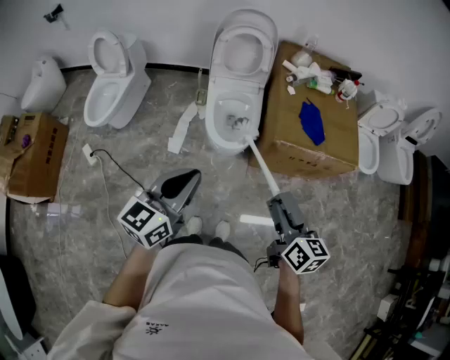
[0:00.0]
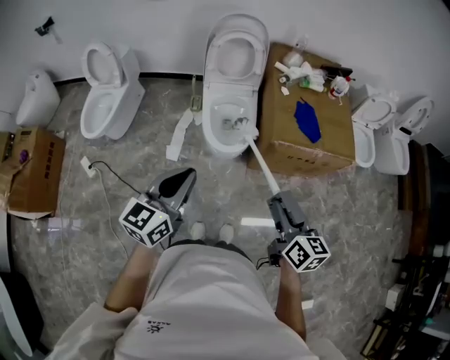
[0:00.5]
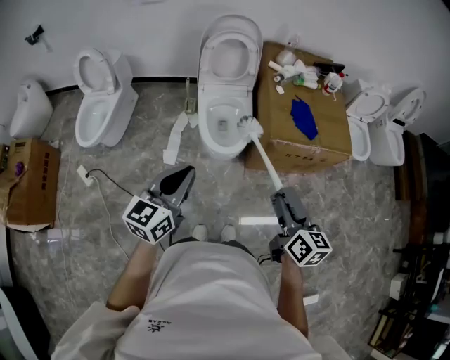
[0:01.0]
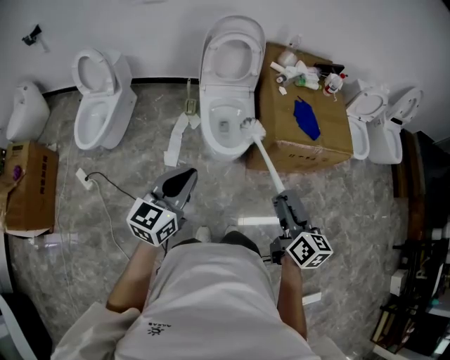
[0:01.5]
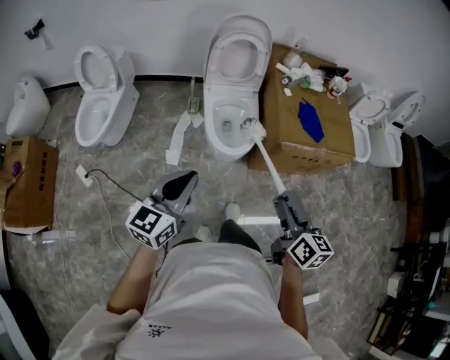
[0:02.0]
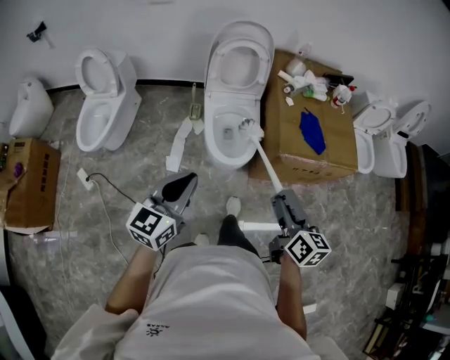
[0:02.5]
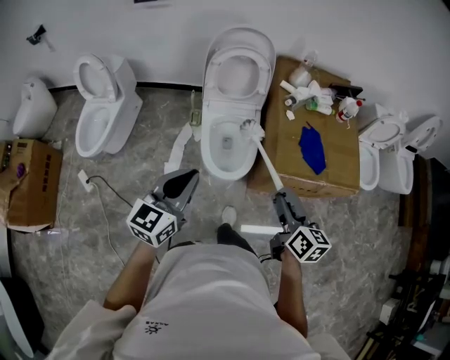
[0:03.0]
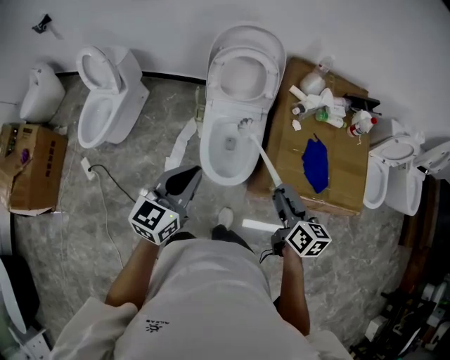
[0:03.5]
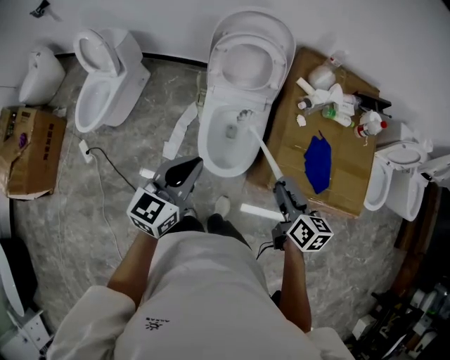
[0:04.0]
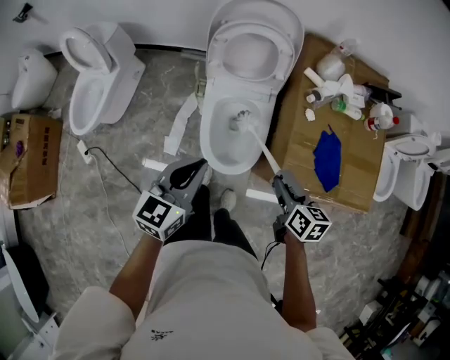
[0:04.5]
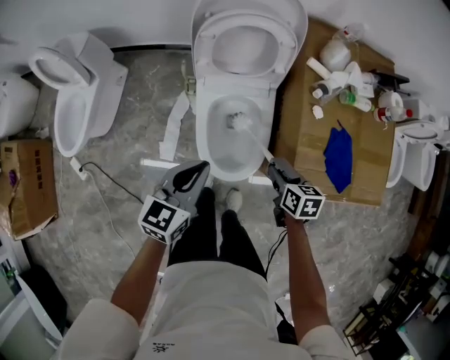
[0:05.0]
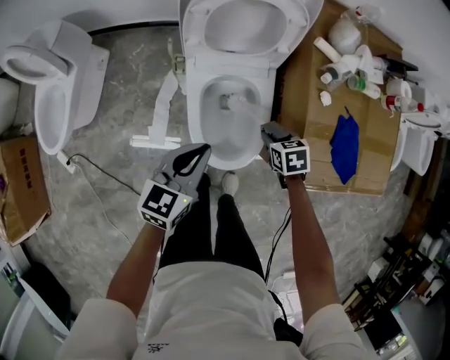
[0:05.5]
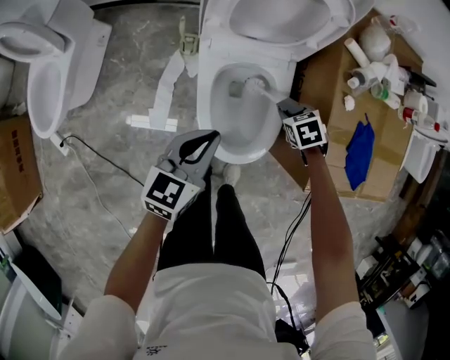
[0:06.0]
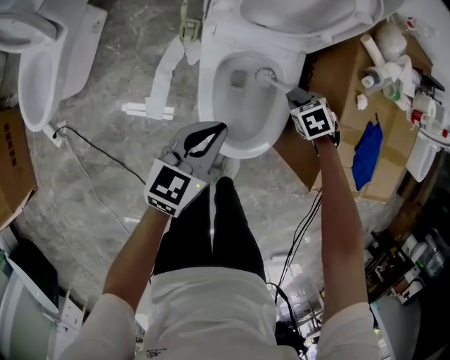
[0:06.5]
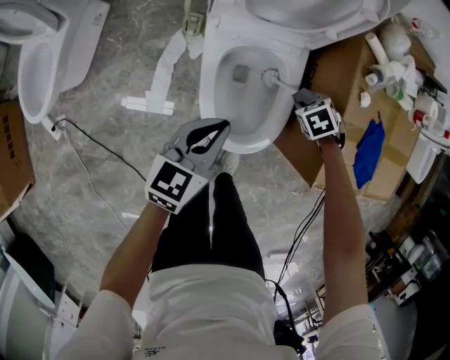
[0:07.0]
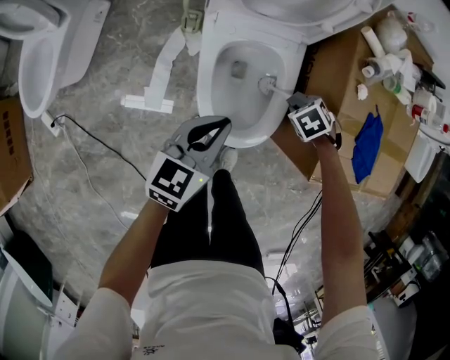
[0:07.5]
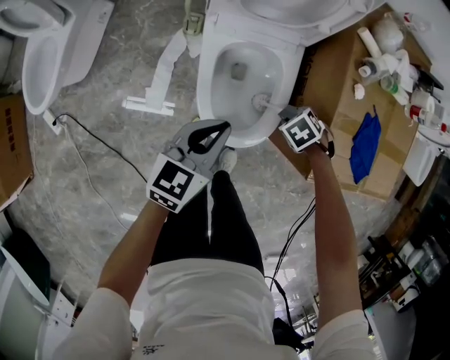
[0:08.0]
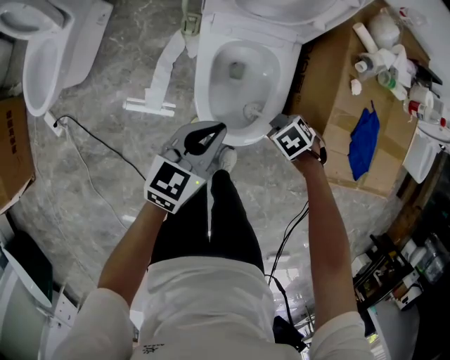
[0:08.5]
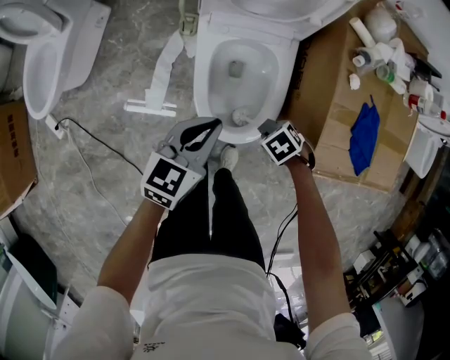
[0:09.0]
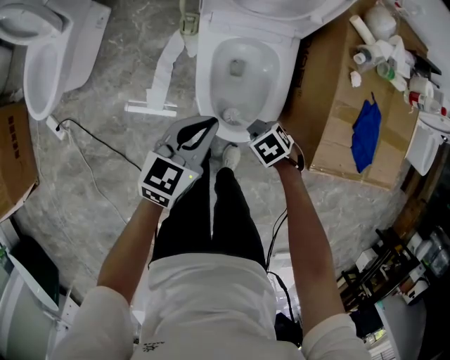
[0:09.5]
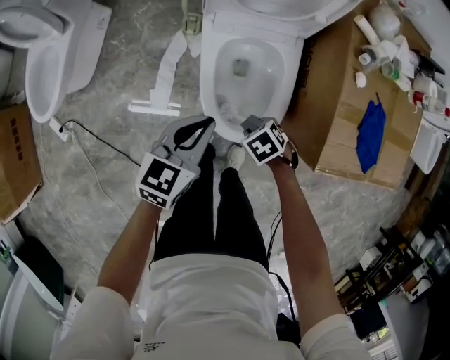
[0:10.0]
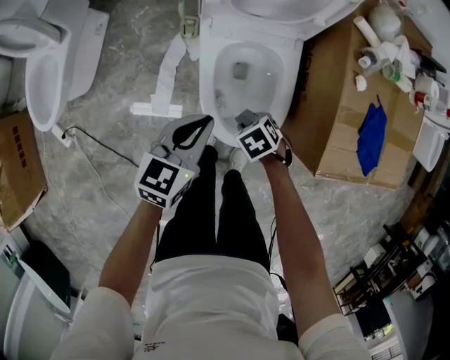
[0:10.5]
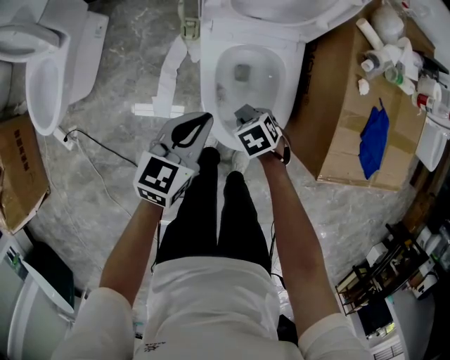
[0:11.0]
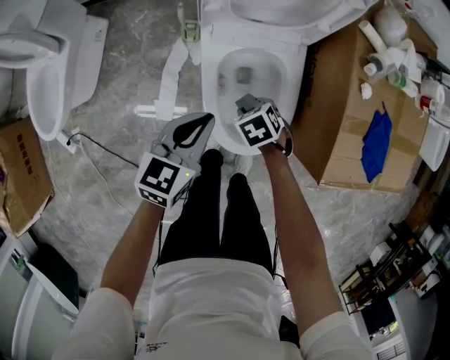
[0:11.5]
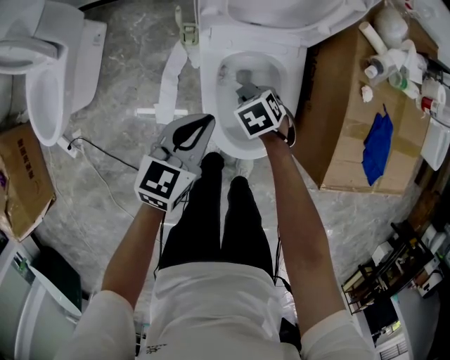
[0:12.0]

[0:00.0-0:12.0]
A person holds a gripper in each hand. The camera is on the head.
0:00.0 to 0:02.0: The two grippers go roughly 10 cm to the left.
0:02.0 to 0:04.0: Both grippers travel together forward, some 35 cm. The right gripper changes its angle by some 20 degrees.
0:04.0 to 0:06.0: The grippers both shift downward by about 30 cm. The right gripper tilts its fingers some 50 degrees downward.
0:06.0 to 0:08.0: The left gripper changes place by roughly 5 cm, while the right gripper shifts by some 10 cm, and turns by roughly 20 degrees.
0:08.0 to 0:10.0: The right gripper moves approximately 15 cm.
0:10.0 to 0:12.0: The right gripper moves approximately 15 cm; the left gripper shifts by roughly 10 cm.

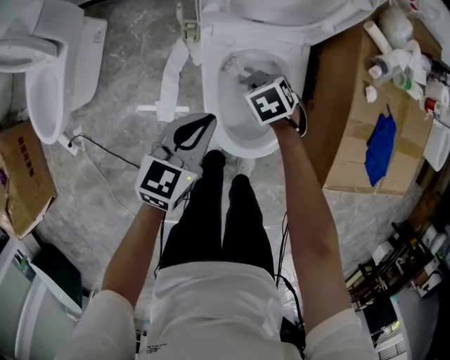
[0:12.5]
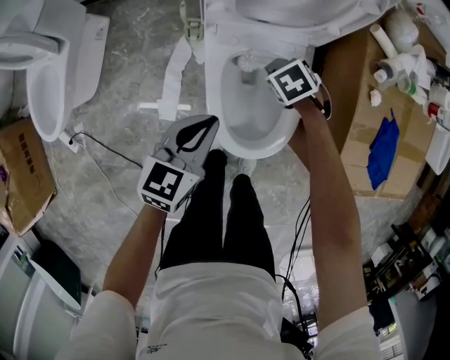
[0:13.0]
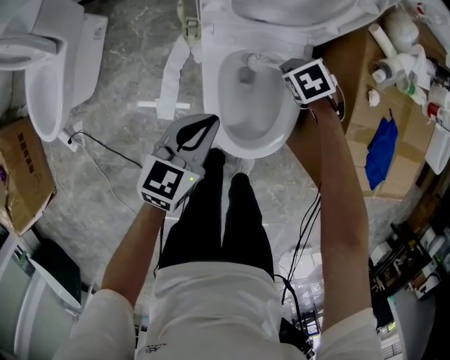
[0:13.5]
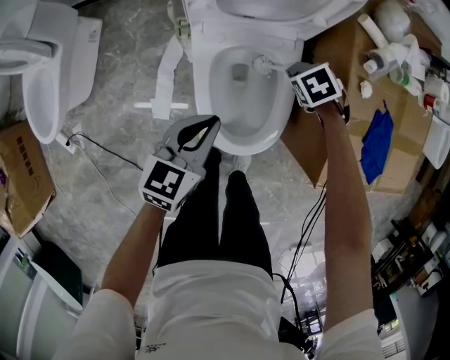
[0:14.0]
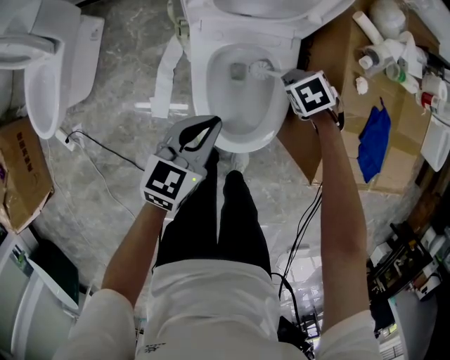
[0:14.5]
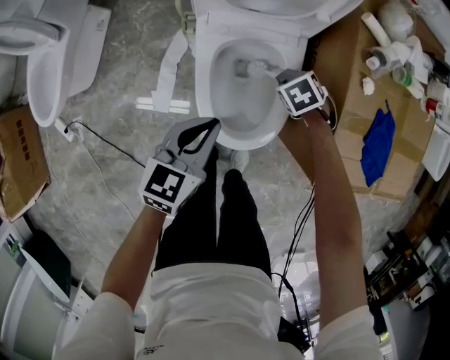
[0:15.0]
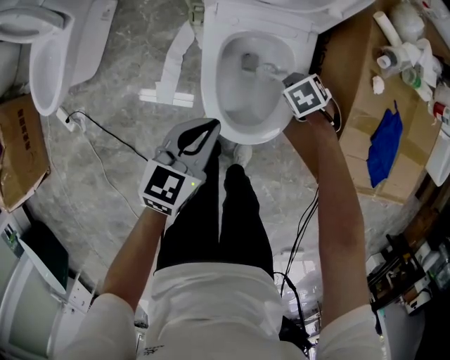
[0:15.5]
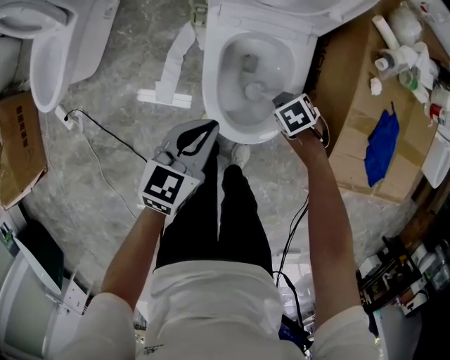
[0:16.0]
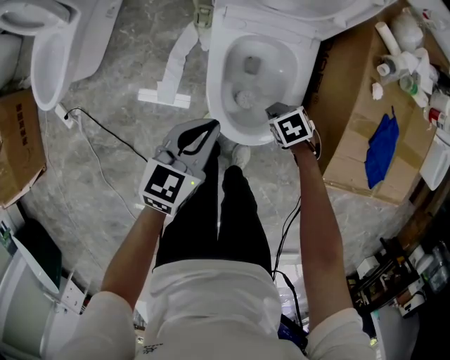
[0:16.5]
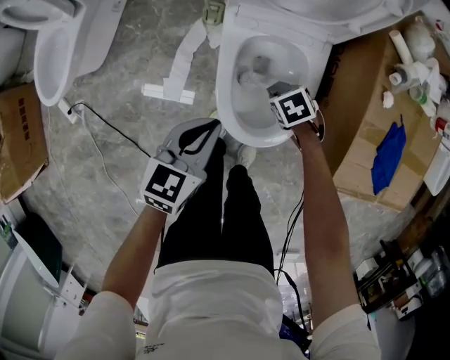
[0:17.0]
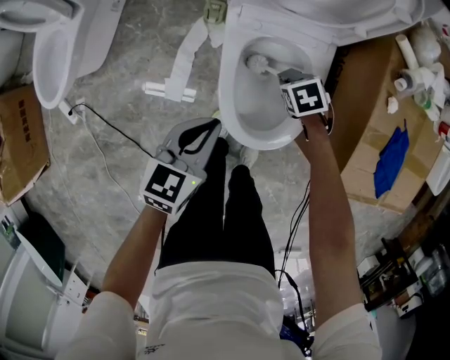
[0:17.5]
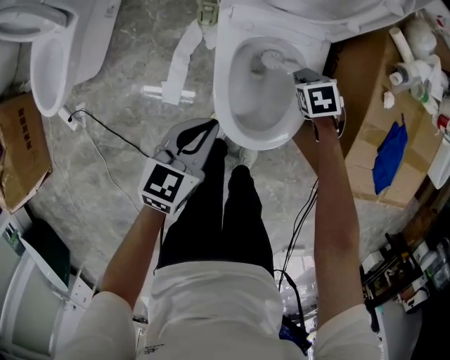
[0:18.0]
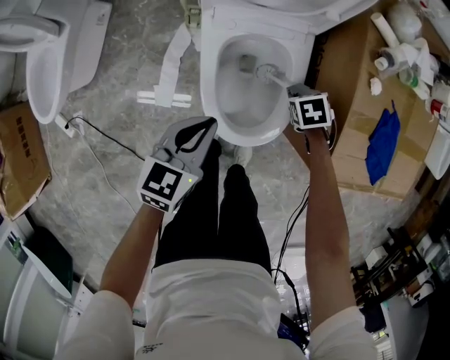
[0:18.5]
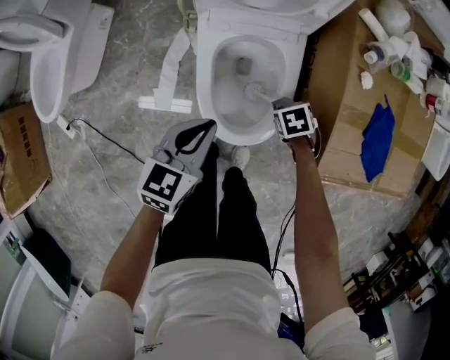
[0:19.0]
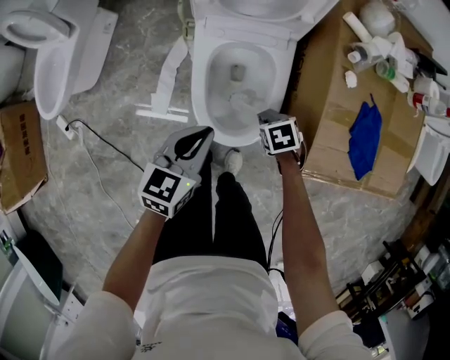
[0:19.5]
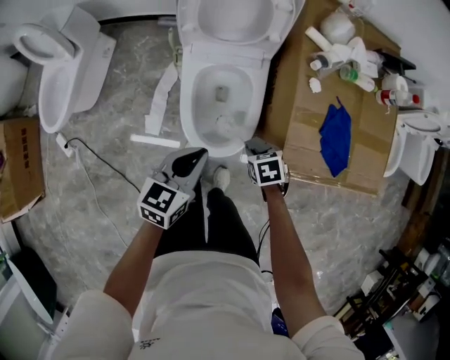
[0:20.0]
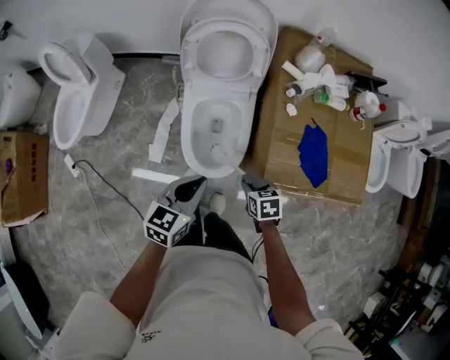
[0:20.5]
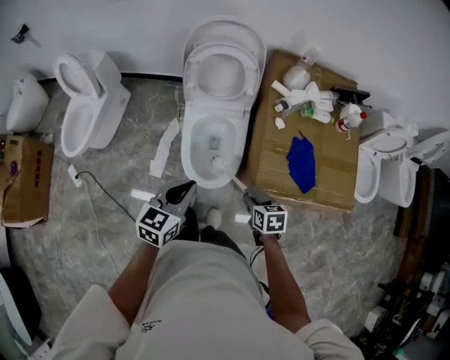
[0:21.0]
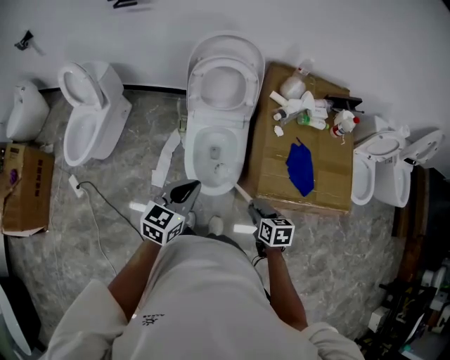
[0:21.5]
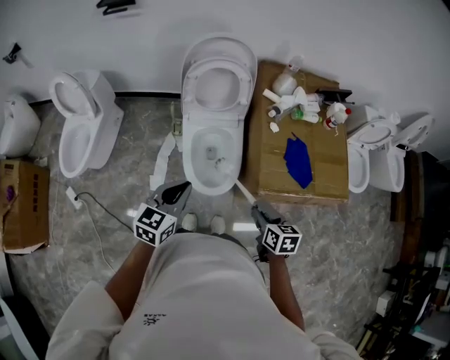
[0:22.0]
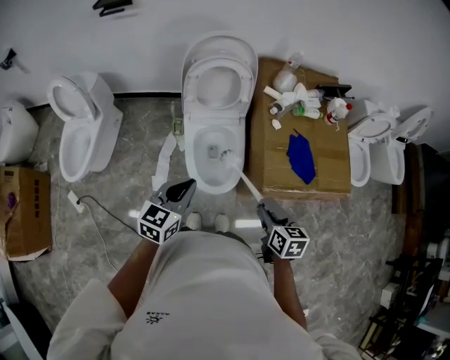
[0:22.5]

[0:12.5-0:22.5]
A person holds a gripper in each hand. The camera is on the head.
0:12.5 to 0:14.5: The right gripper changes place by roughly 15 cm; the left gripper changes place by approximately 5 cm.
0:14.5 to 0:16.5: The right gripper moves approximately 15 cm. The left gripper moves approximately 5 cm.
0:16.5 to 0:18.5: The right gripper shifts by about 10 cm.
0:18.5 to 0:20.5: The right gripper changes place by about 30 cm, and swivels roughly 30 degrees, while the left gripper heads upward, covering approximately 20 cm.
0:20.5 to 0:22.5: The left gripper travels upward and to the left by some 15 cm. The right gripper goes roughly 20 cm upward and backward, and changes its angle by roughly 30 degrees.

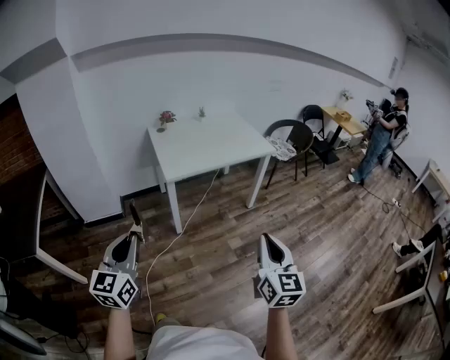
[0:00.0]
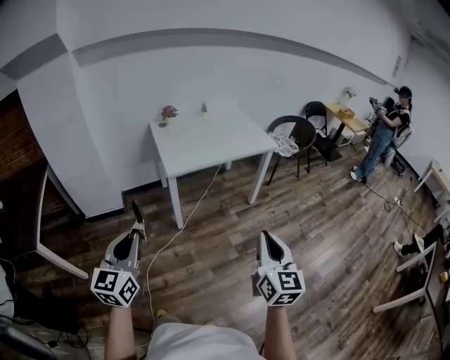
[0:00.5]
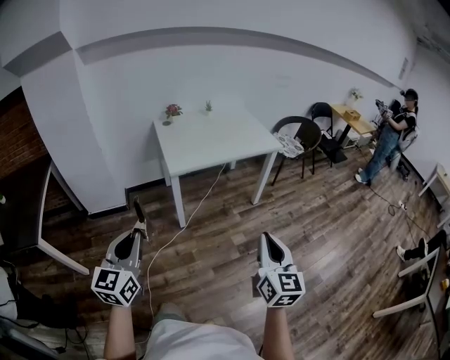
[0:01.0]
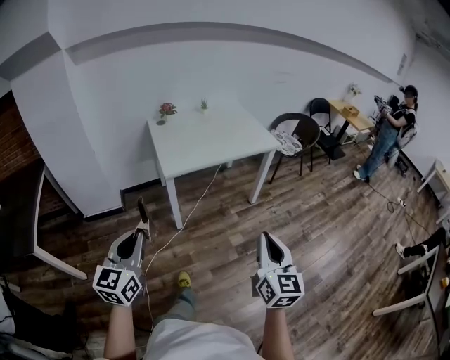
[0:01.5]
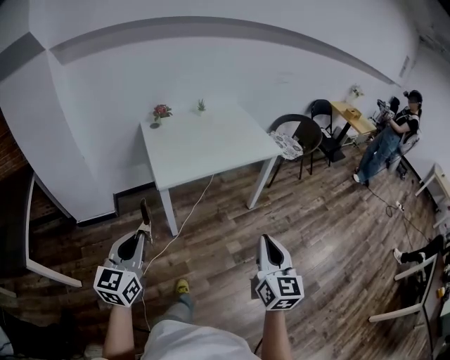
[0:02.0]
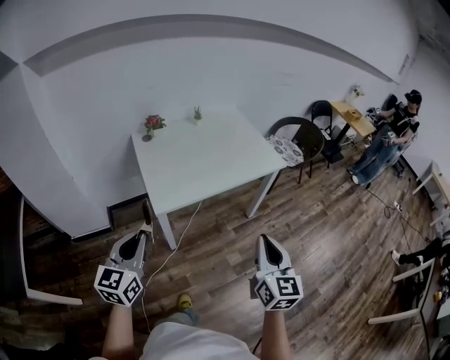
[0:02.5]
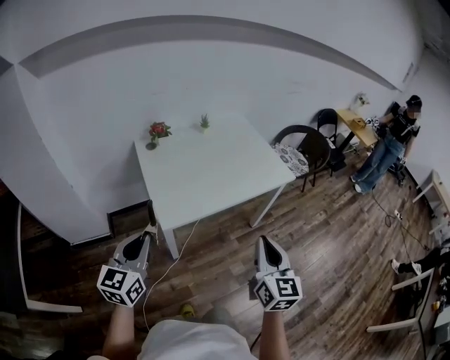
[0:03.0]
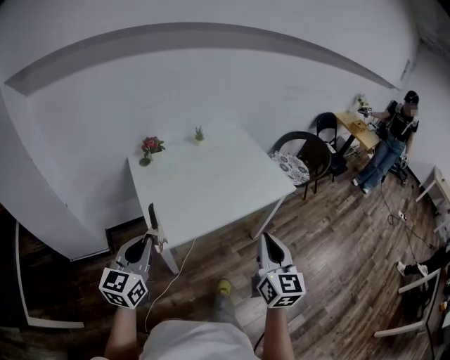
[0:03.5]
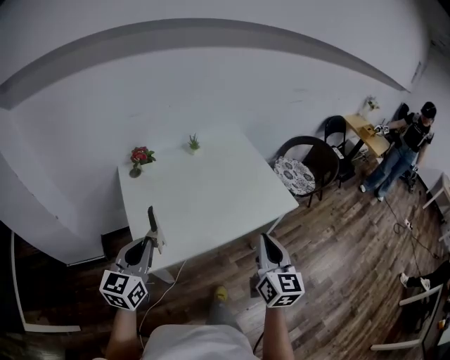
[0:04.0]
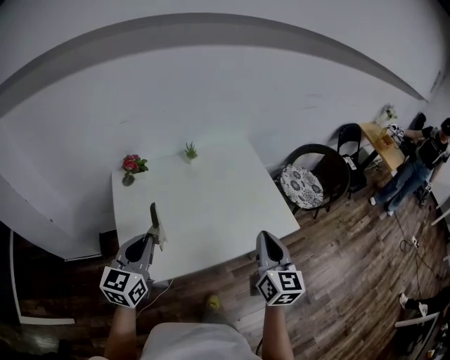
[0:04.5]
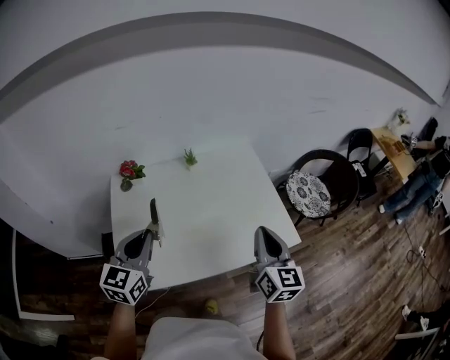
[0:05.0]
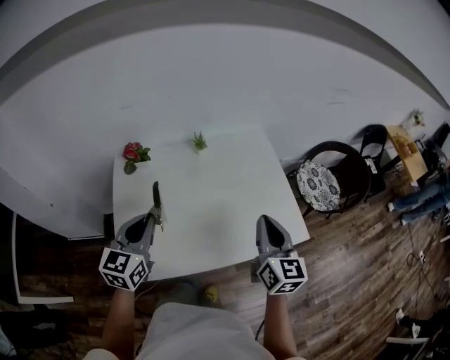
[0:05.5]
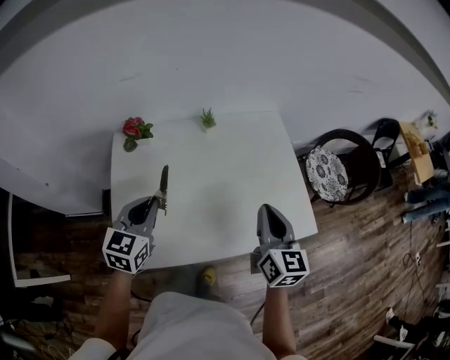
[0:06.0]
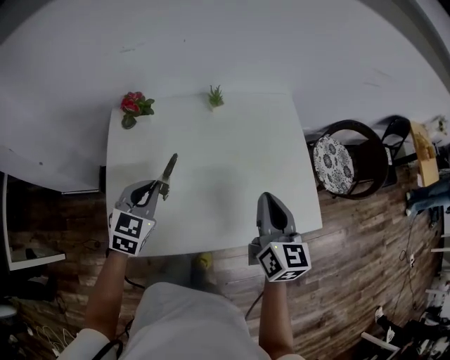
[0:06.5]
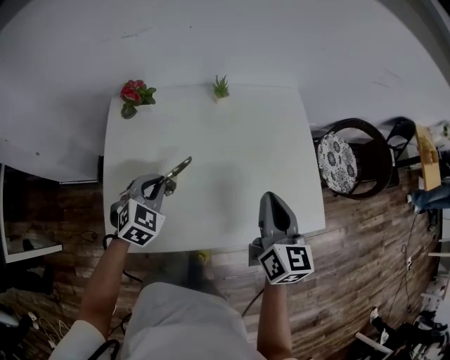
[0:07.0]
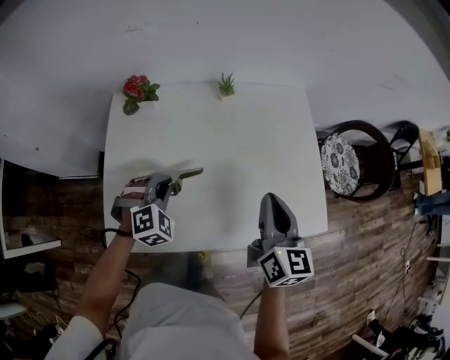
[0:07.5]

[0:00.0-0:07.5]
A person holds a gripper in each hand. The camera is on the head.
0:00.0 to 0:02.0: Both grippers move forward, about 15 cm.
0:02.0 to 0:04.0: The two grippers travel together, forward, about 40 cm.
0:04.0 to 0:05.5: Both grippers move forward, some 20 cm.
0:05.5 to 0:07.5: The left gripper travels downward by roughly 20 cm, and rolls clockwise, seen from behind, by roughly 50 degrees. The right gripper moves downward and forward, roughly 10 cm.
